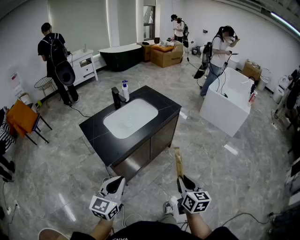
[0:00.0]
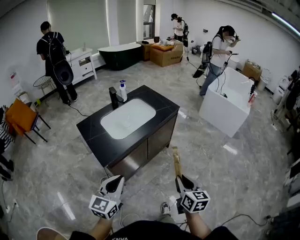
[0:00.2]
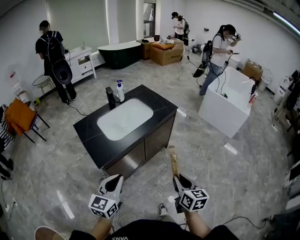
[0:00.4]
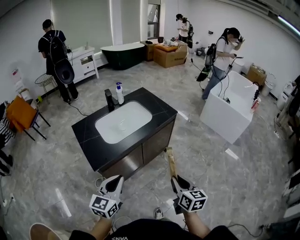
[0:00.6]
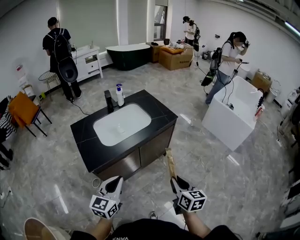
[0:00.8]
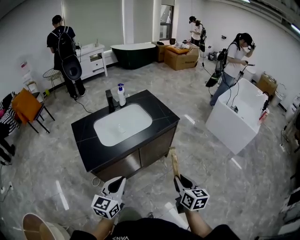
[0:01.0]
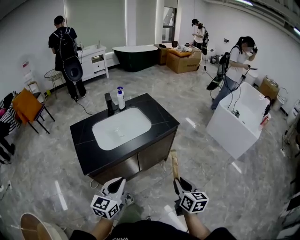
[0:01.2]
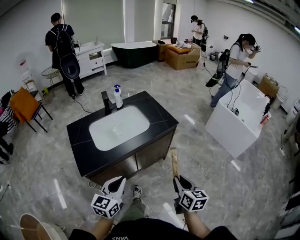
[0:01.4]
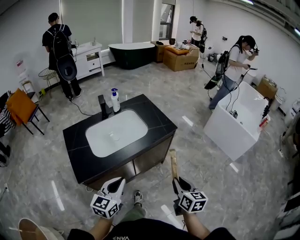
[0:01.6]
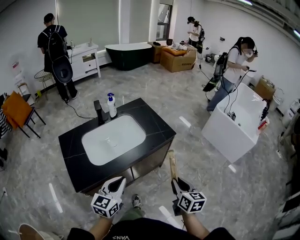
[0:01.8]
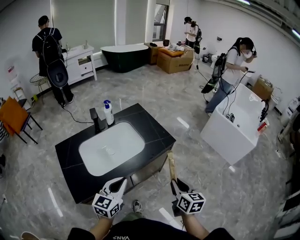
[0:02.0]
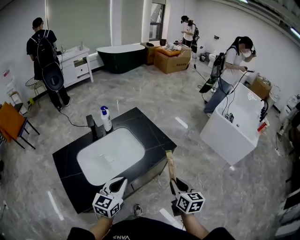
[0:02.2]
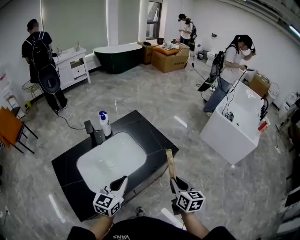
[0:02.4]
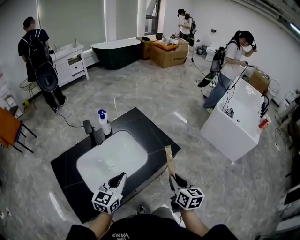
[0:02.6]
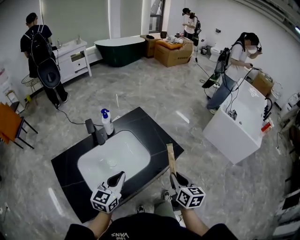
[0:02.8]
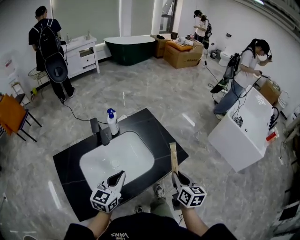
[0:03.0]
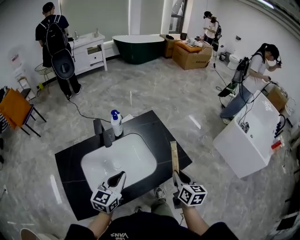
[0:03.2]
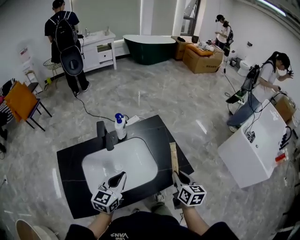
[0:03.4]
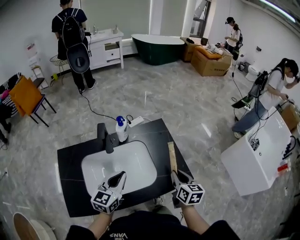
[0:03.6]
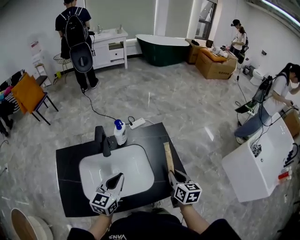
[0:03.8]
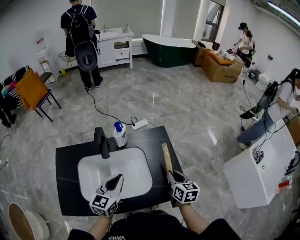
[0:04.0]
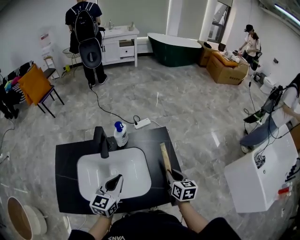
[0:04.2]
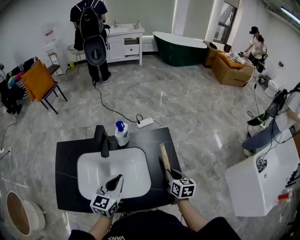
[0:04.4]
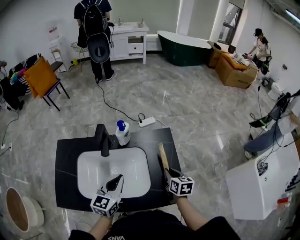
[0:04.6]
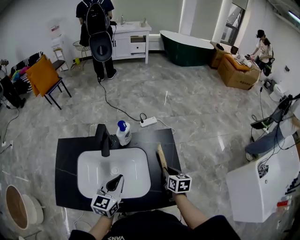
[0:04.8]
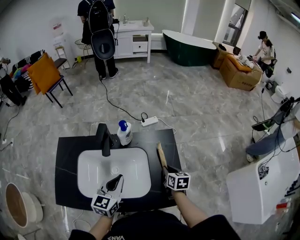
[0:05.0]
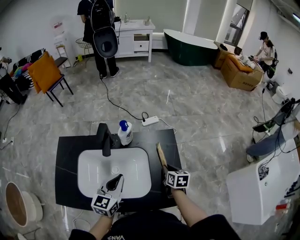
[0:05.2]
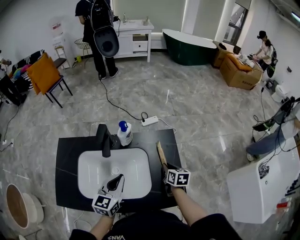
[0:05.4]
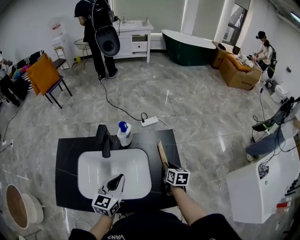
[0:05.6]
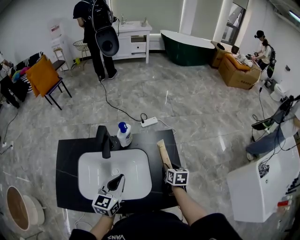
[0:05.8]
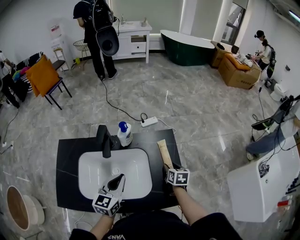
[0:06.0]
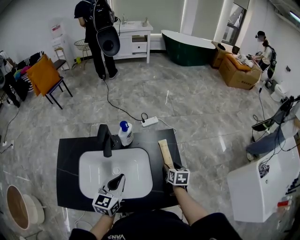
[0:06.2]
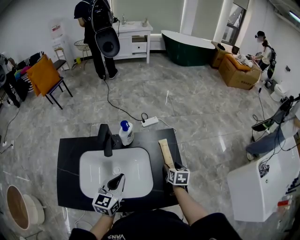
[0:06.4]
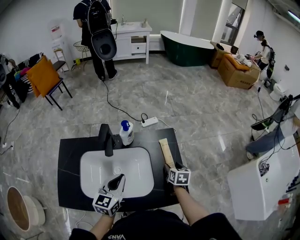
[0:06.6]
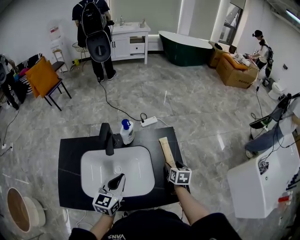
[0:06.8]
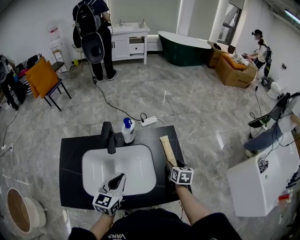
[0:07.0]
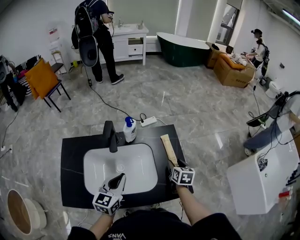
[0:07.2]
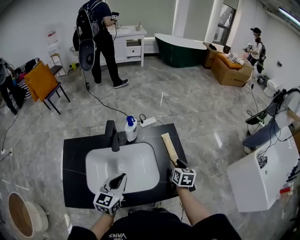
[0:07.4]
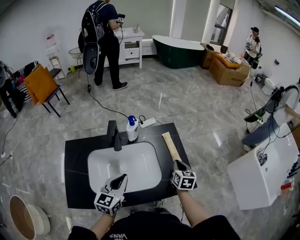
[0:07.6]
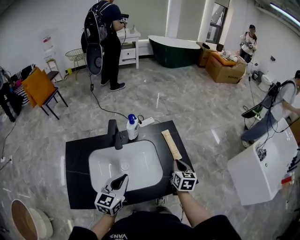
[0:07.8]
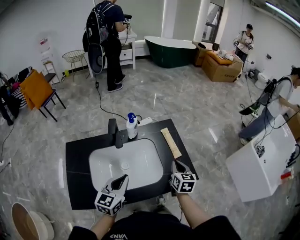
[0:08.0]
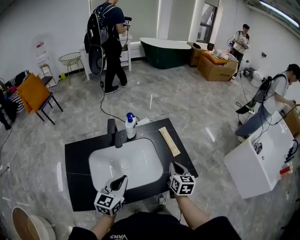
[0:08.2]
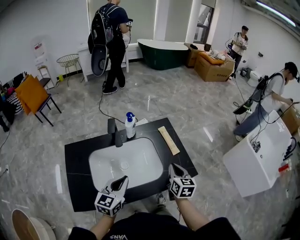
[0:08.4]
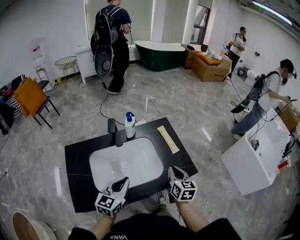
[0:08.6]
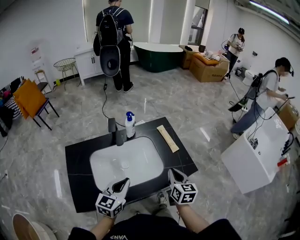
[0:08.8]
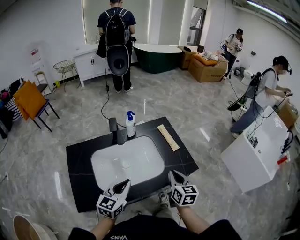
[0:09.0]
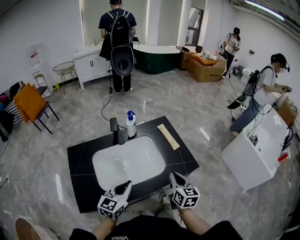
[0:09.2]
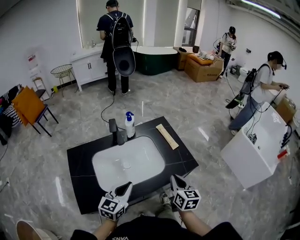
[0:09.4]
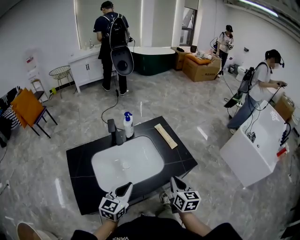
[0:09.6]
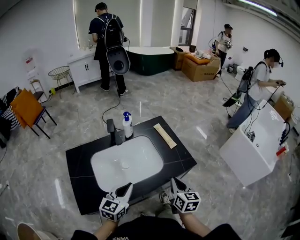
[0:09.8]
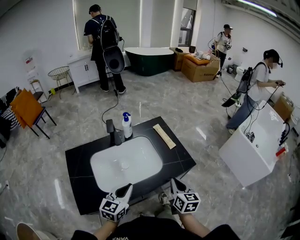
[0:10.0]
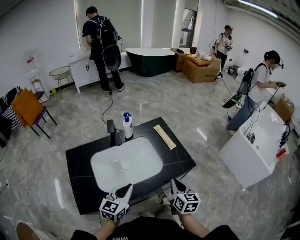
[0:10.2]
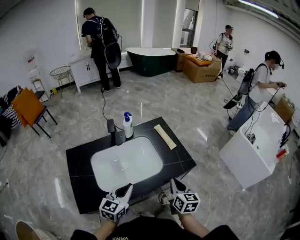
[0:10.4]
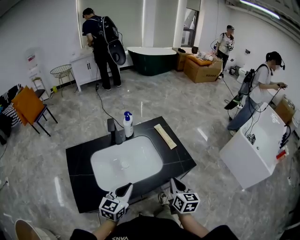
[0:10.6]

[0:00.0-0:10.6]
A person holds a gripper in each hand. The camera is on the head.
0:00.0 to 0:01.6: Both grippers travel together forward and to the right, roughly 25 cm.
0:01.6 to 0:03.0: The two grippers go roughly 30 cm forward.
0:03.0 to 0:04.6: The right gripper ends up approximately 30 cm from where it was, and turns by some 30 degrees; the left gripper moves approximately 10 cm, and rotates some 30 degrees.
0:04.6 to 0:06.0: The right gripper ends up roughly 5 cm from where it was, and opens up.
0:06.0 to 0:07.6: The left gripper shifts approximately 5 cm backward, while the right gripper travels upward and backward by approximately 10 cm, and closes its fingers.
0:07.6 to 0:09.0: The right gripper moves backward, some 20 cm; the left gripper goes approximately 10 cm backward.
0:09.0 to 0:10.6: The right gripper heads backward, covering roughly 5 cm.

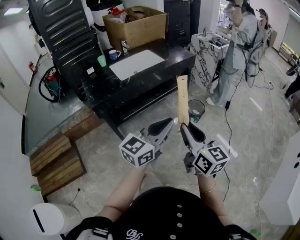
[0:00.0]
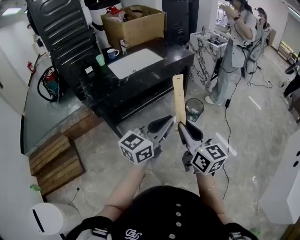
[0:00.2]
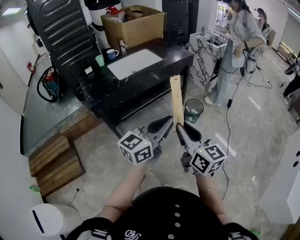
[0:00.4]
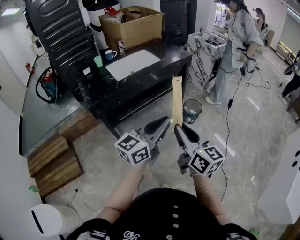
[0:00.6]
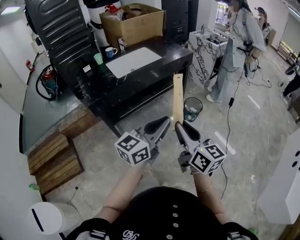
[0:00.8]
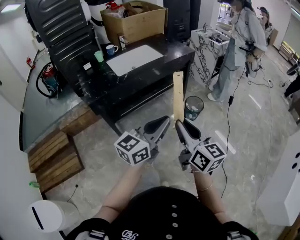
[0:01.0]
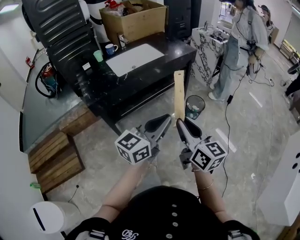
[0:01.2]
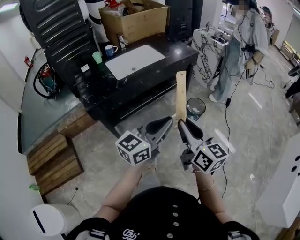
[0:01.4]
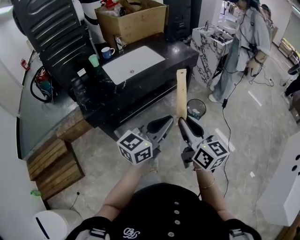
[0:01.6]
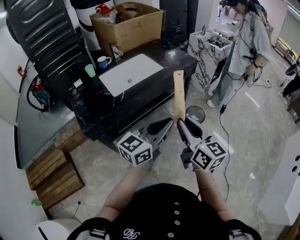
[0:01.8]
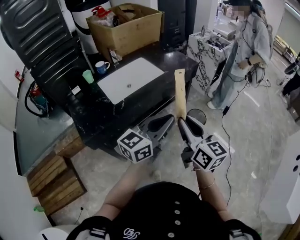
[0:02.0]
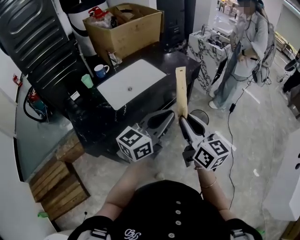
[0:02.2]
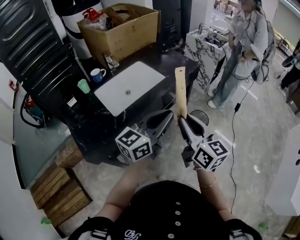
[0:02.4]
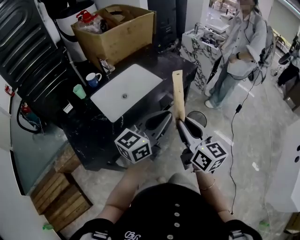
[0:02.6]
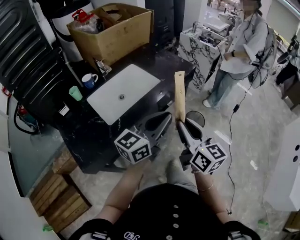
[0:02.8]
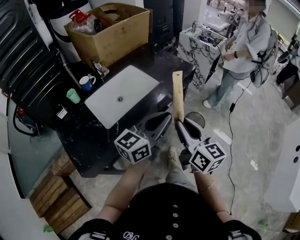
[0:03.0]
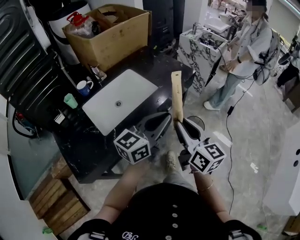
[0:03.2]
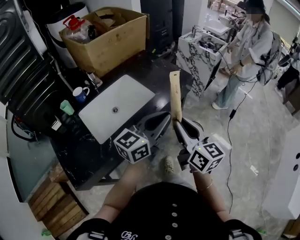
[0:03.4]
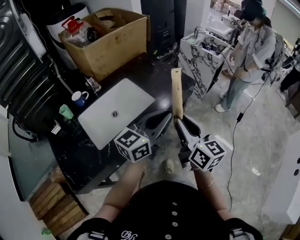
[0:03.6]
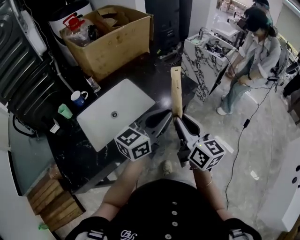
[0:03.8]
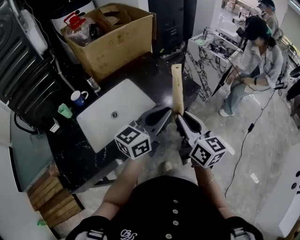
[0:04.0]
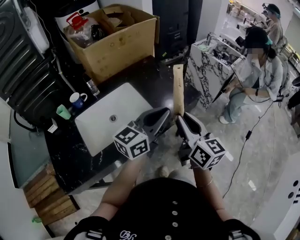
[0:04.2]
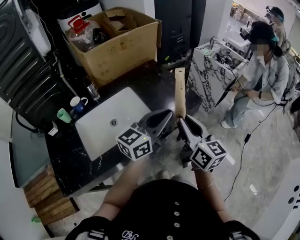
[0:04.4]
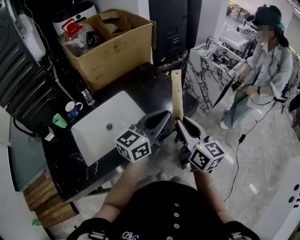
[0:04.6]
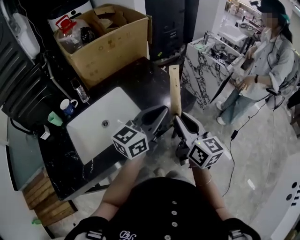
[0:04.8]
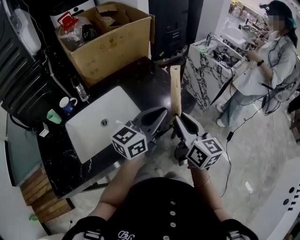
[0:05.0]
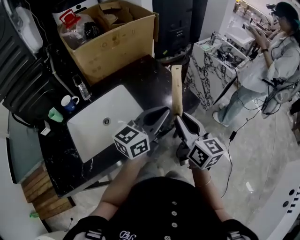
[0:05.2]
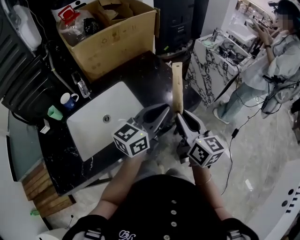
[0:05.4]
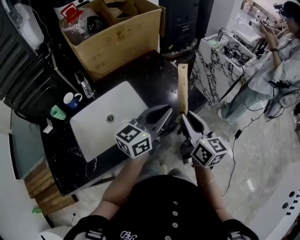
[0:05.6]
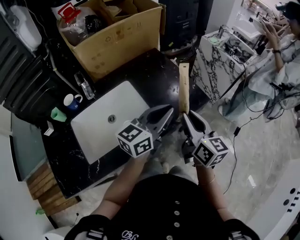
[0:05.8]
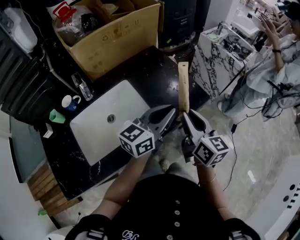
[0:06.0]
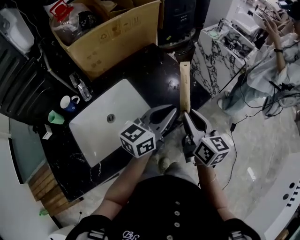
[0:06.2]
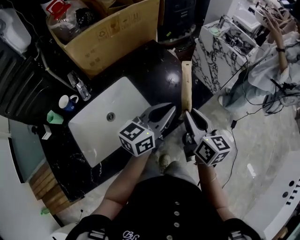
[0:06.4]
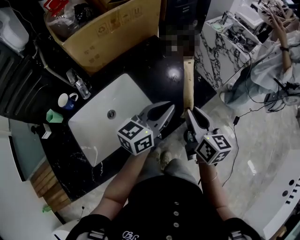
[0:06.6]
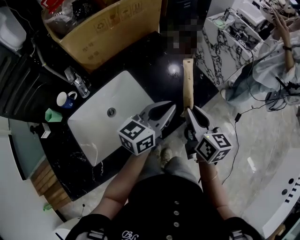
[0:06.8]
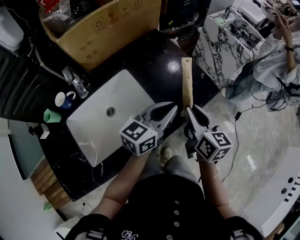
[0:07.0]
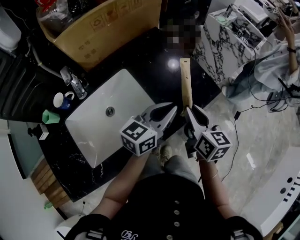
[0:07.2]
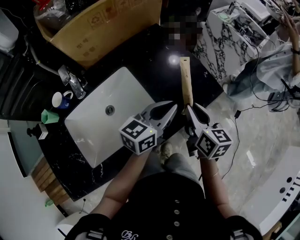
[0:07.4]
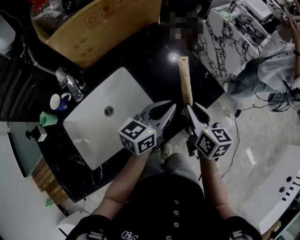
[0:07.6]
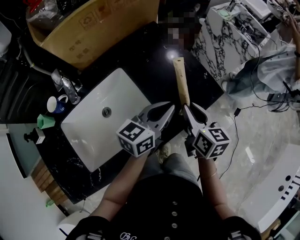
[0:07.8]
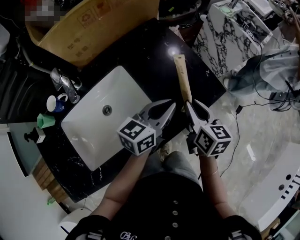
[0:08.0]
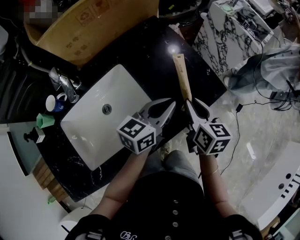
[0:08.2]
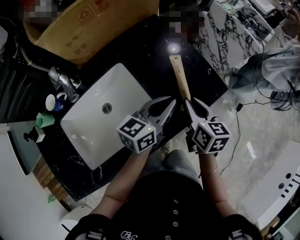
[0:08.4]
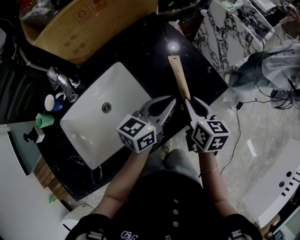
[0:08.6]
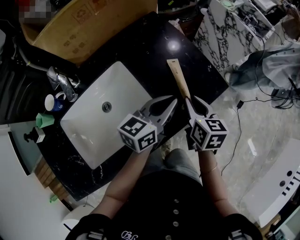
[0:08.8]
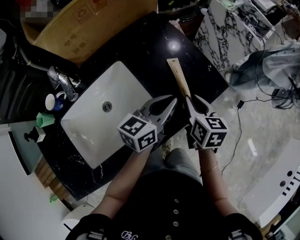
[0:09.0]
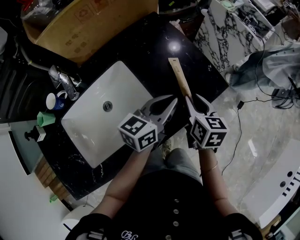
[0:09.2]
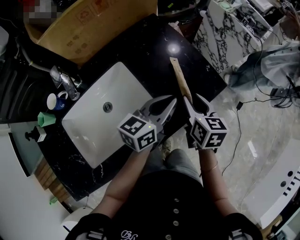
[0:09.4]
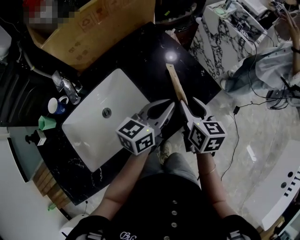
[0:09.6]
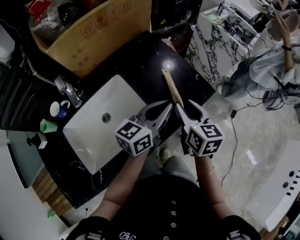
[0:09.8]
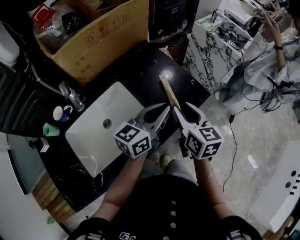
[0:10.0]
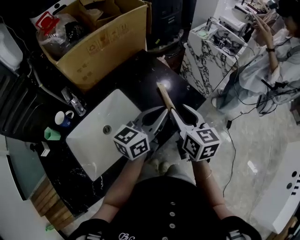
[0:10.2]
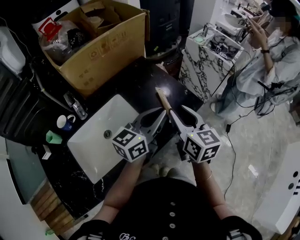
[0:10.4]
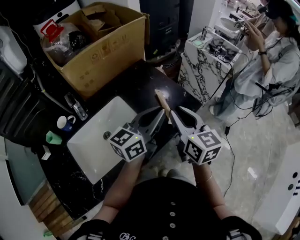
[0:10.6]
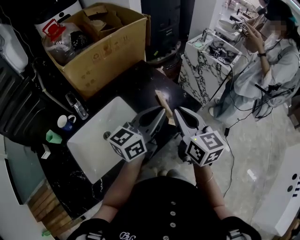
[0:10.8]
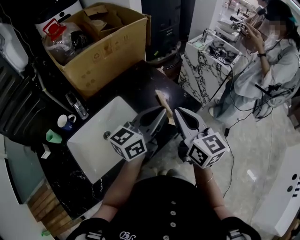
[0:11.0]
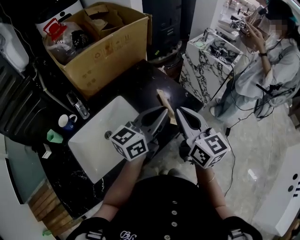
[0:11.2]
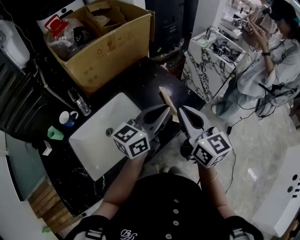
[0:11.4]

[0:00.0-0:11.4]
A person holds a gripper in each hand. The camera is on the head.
0:00.0 to 0:01.4: The two grippers go some 5 cm forward.
0:01.4 to 0:02.8: Both grippers travel together forward, some 25 cm.
0:02.8 to 0:04.2: Both grippers move forward, some 25 cm.
0:04.2 to 0:05.6: The two grippers go roughly 10 cm forward.
0:05.6 to 0:07.2: The left gripper is displaced downward by some 10 cm, while the right gripper shifts some 10 cm downward and forward.
0:07.2 to 0:08.6: The right gripper moves downward, some 5 cm; the left gripper ends up about 5 cm from where it was.
0:08.6 to 0:10.0: The two grippers go approximately 10 cm upward.
0:10.0 to 0:11.4: The right gripper moves upward, approximately 10 cm, turns by some 20 degrees, and closes. The left gripper heads upward, covering about 5 cm.

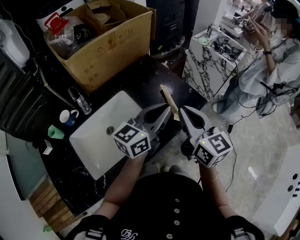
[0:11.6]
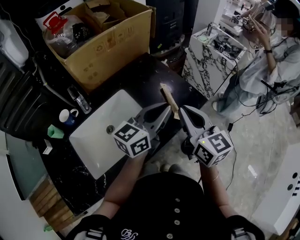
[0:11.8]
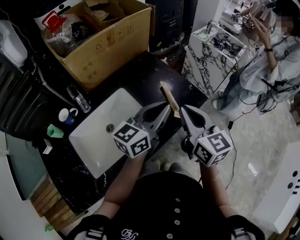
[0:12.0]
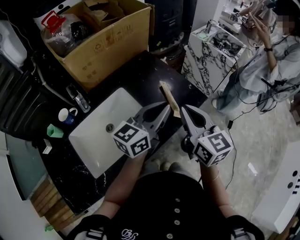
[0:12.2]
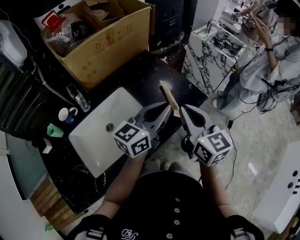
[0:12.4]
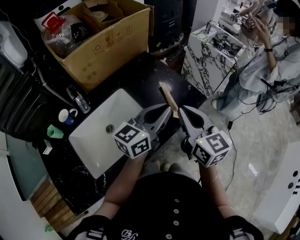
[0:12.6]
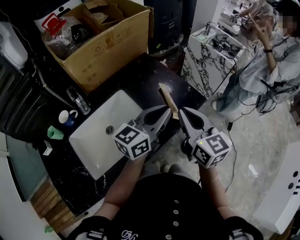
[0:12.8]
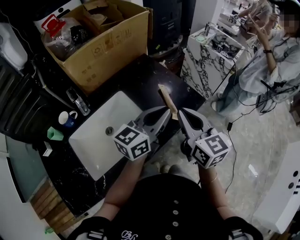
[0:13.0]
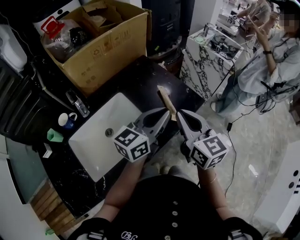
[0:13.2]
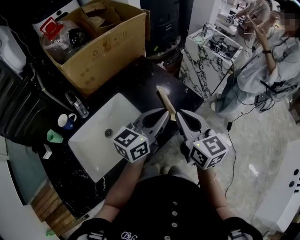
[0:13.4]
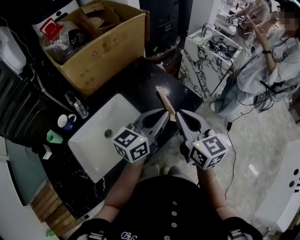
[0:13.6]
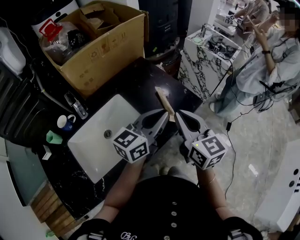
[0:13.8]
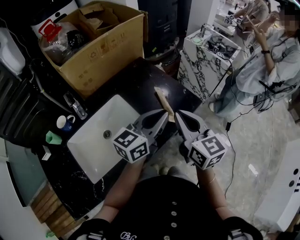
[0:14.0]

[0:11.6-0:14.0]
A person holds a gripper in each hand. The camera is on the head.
0:11.6 to 0:12.8: Neither gripper changes place.
0:12.8 to 0:14.0: Both grippers stay about where they are.
